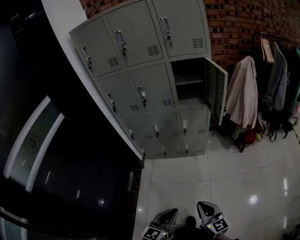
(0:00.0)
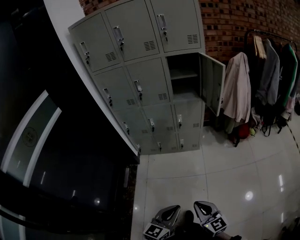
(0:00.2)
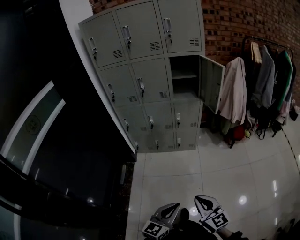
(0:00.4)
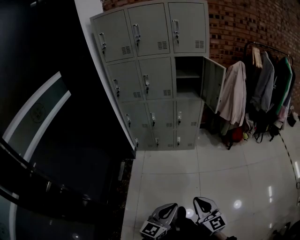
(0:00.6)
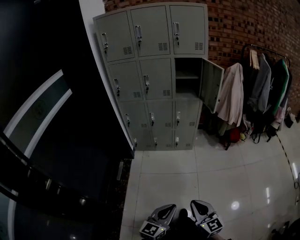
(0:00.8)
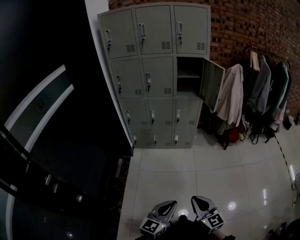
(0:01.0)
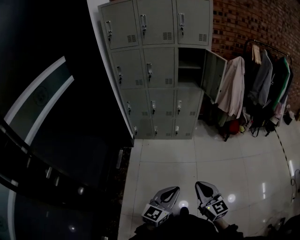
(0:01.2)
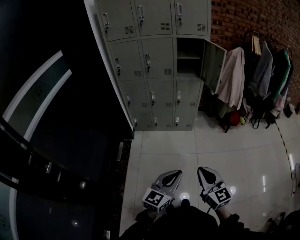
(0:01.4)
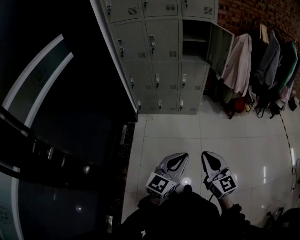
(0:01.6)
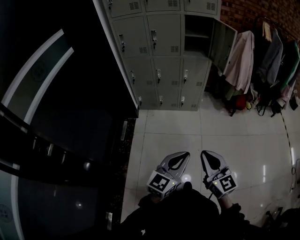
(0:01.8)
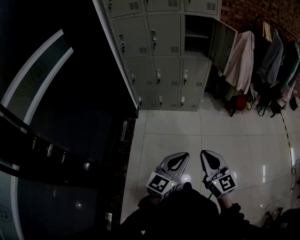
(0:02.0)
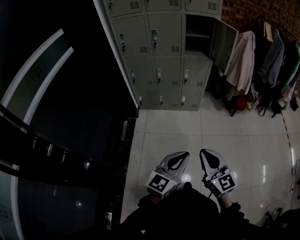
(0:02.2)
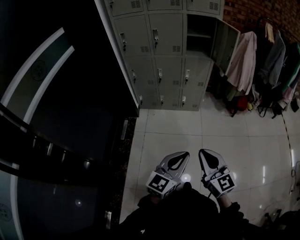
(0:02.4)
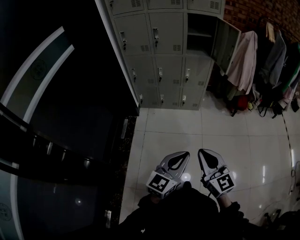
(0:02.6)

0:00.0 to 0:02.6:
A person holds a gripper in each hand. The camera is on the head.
0:00.0 to 0:01.2: The grippers both shift backward by about 15 cm.
0:01.2 to 0:02.6: The right gripper ends up some 5 cm from where it was.

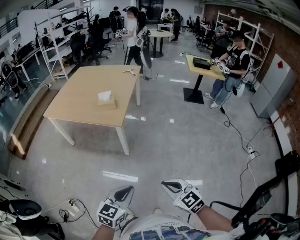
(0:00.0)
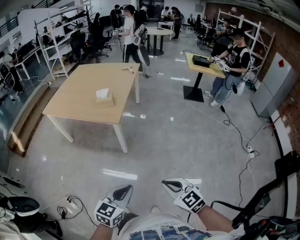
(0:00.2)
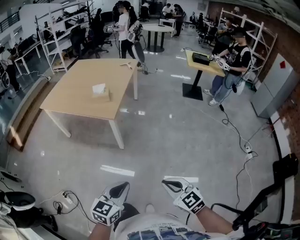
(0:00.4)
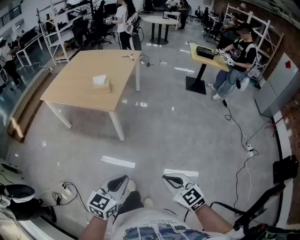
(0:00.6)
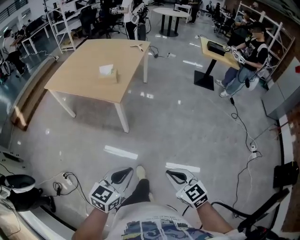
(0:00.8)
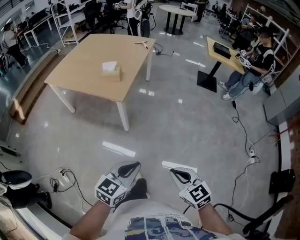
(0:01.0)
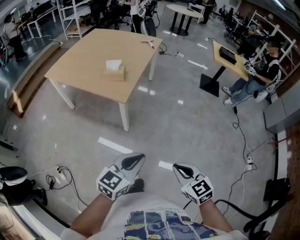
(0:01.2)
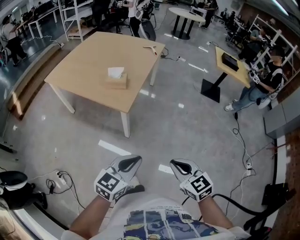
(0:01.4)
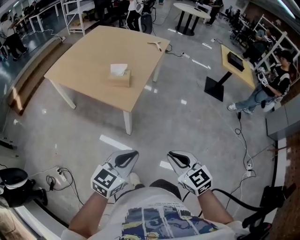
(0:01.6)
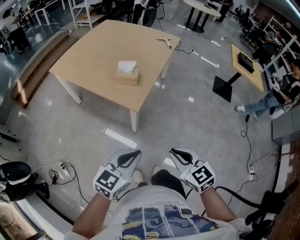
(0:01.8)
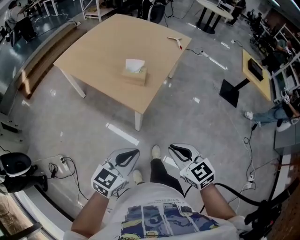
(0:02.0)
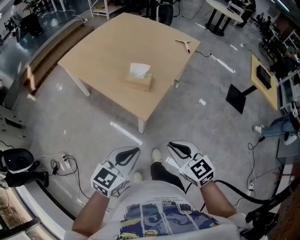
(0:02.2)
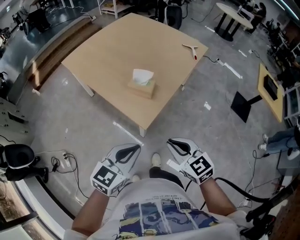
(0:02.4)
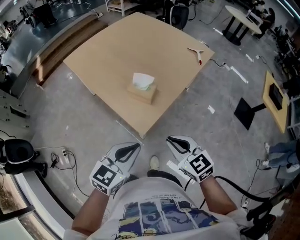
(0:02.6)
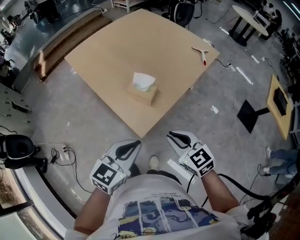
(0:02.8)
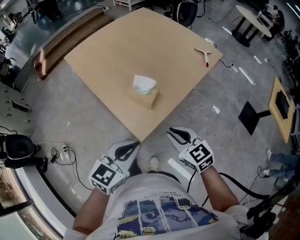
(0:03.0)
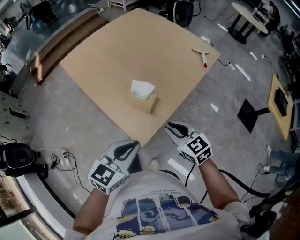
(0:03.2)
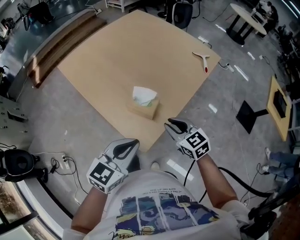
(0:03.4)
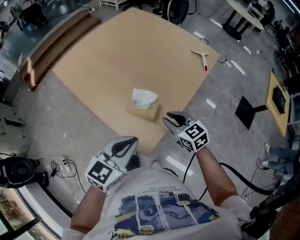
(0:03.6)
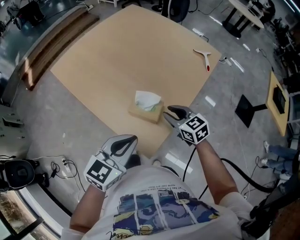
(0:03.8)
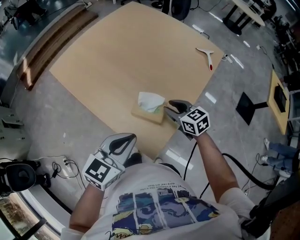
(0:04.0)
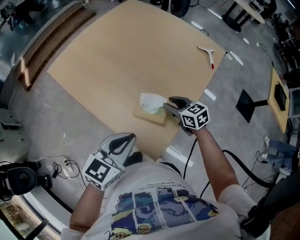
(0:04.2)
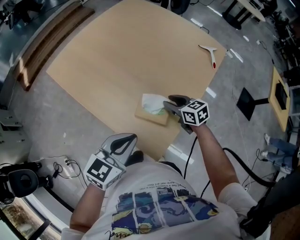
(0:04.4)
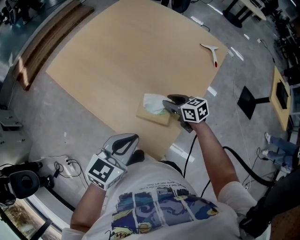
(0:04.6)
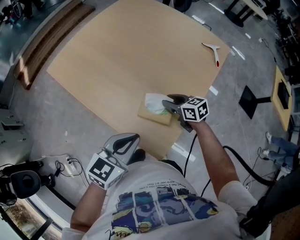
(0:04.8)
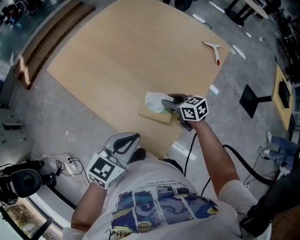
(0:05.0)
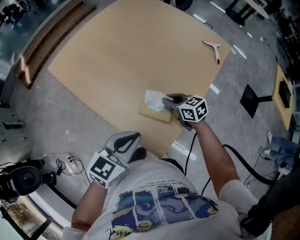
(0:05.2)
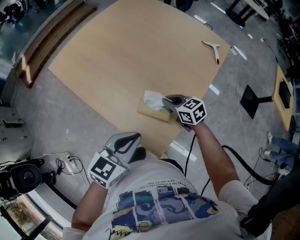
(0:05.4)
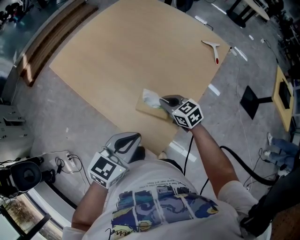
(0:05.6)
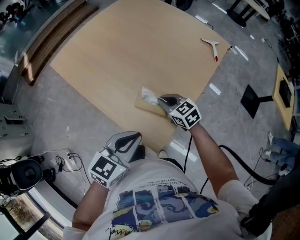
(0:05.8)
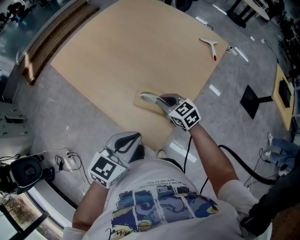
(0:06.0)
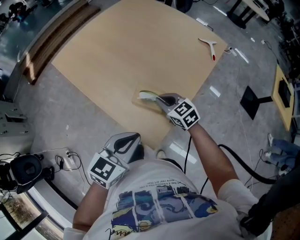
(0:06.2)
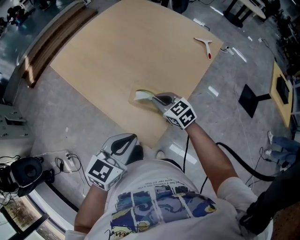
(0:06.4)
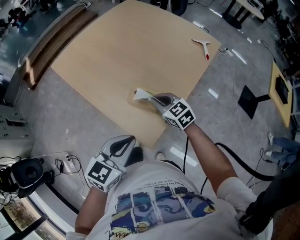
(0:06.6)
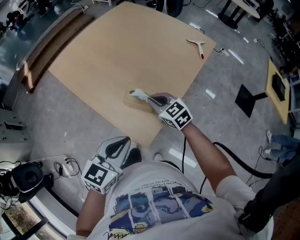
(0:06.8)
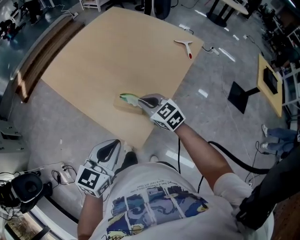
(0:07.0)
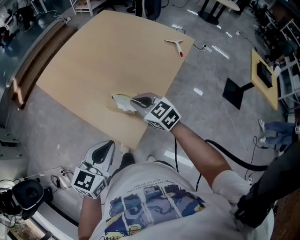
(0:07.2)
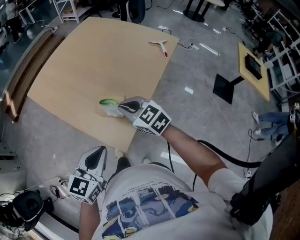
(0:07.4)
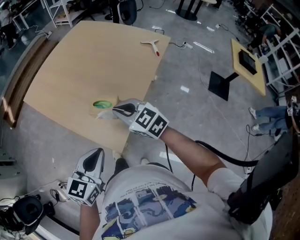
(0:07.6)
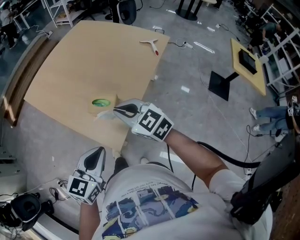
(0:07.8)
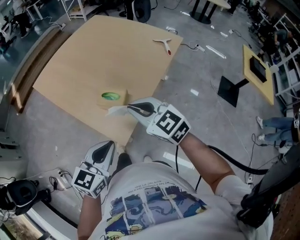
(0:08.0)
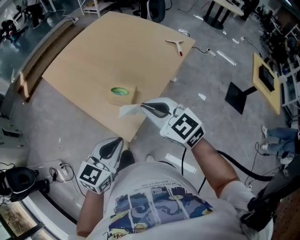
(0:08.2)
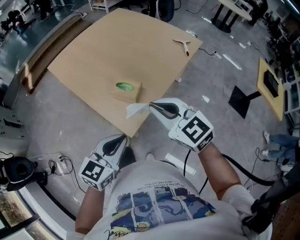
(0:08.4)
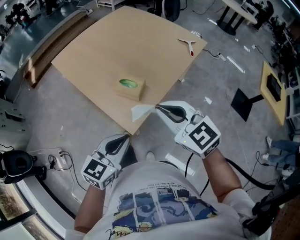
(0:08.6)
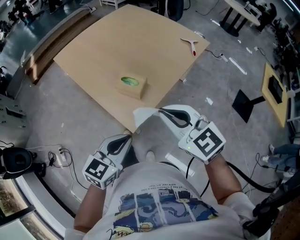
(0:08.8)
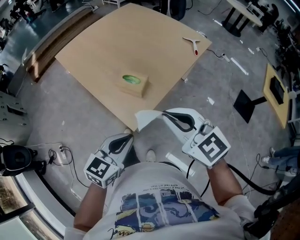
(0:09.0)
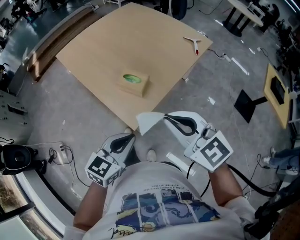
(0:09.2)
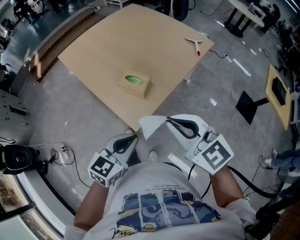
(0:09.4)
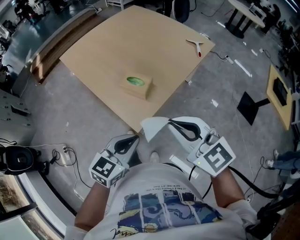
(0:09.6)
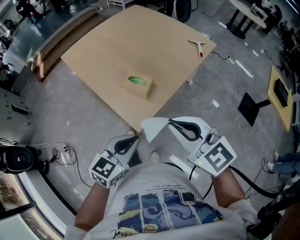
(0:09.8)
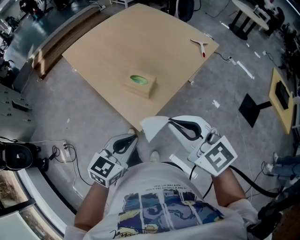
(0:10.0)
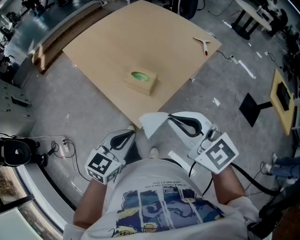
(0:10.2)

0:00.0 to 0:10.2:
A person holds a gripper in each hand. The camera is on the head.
0:00.0 to 0:01.4: Both grippers travel together forward, about 20 cm.
0:01.4 to 0:03.0: The left gripper changes place by about 35 cm, and changes its angle by roughly 30 degrees. The right gripper changes place by roughly 40 cm, and rotates about 30 degrees.
0:03.0 to 0:04.4: The left gripper moves forward and to the left, approximately 20 cm. The right gripper shifts approximately 30 cm forward and downward, turns by roughly 20 degrees, and opens.
0:04.4 to 0:05.8: The right gripper changes place by roughly 5 cm, and closes its fingers.
0:05.8 to 0:07.2: The right gripper is displaced upward and backward by roughly 10 cm, while the left gripper travels backward by roughly 5 cm.
0:07.2 to 0:08.8: The left gripper travels backward and to the right by approximately 15 cm. The right gripper travels backward, upward and to the right by about 25 cm.
0:08.8 to 0:10.2: The grippers make only small movements.

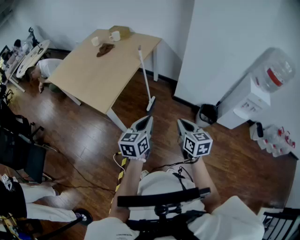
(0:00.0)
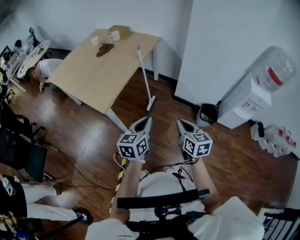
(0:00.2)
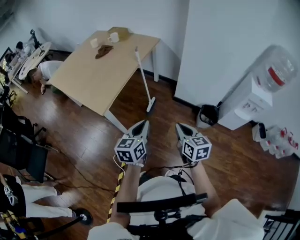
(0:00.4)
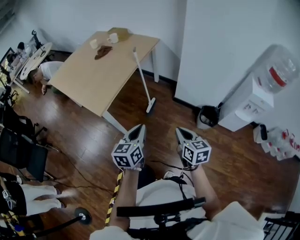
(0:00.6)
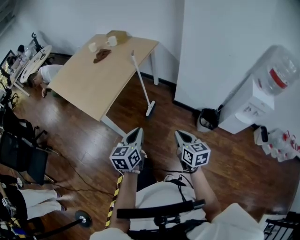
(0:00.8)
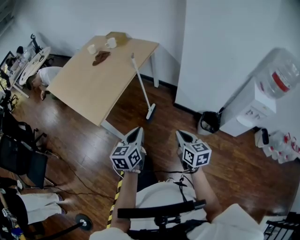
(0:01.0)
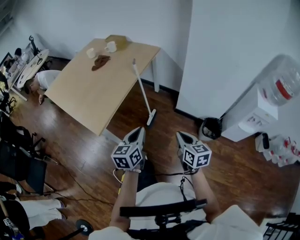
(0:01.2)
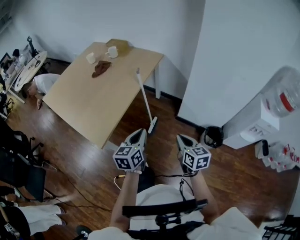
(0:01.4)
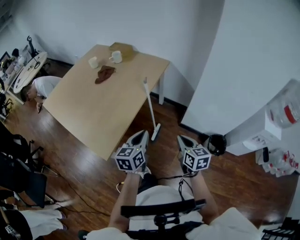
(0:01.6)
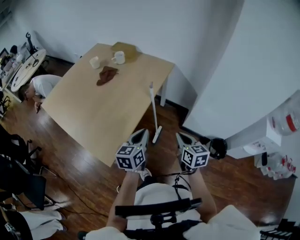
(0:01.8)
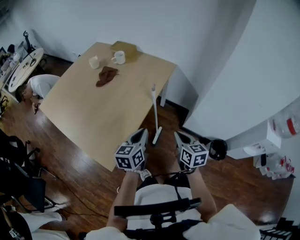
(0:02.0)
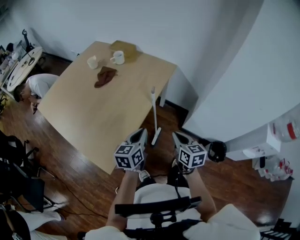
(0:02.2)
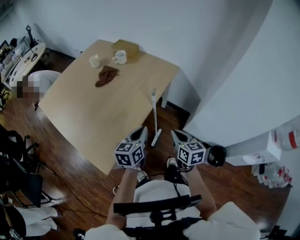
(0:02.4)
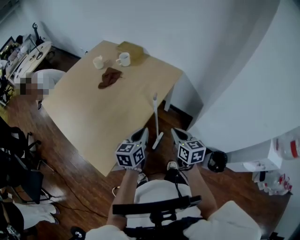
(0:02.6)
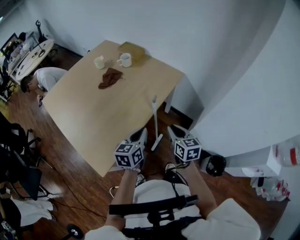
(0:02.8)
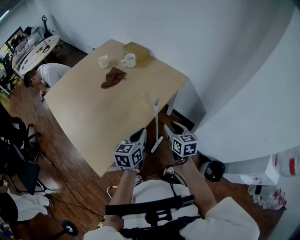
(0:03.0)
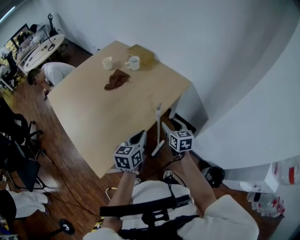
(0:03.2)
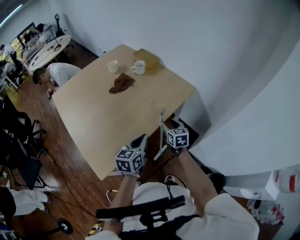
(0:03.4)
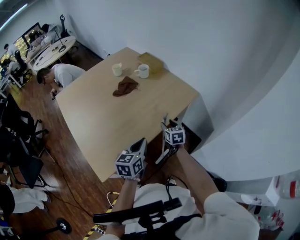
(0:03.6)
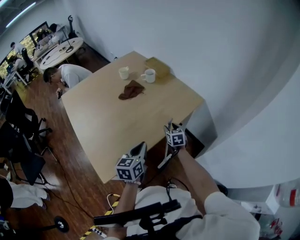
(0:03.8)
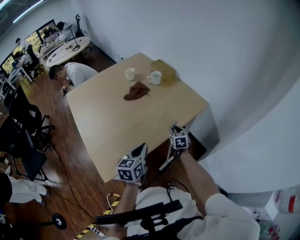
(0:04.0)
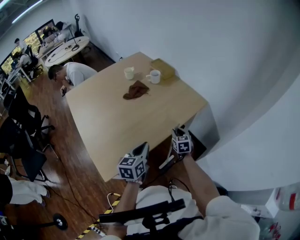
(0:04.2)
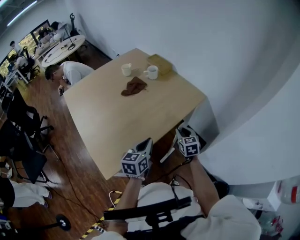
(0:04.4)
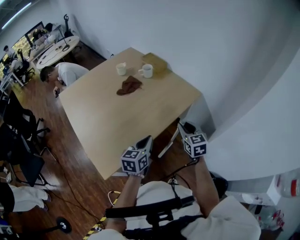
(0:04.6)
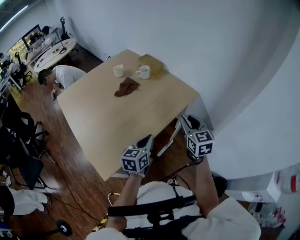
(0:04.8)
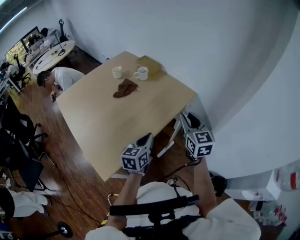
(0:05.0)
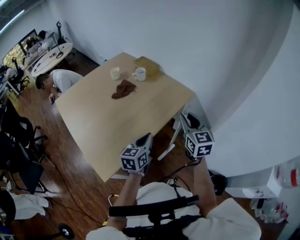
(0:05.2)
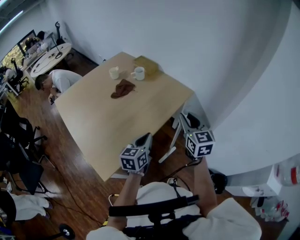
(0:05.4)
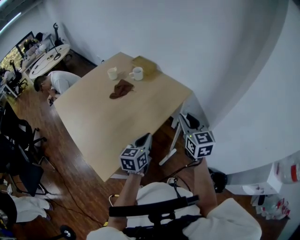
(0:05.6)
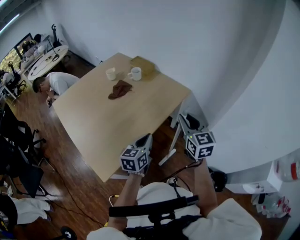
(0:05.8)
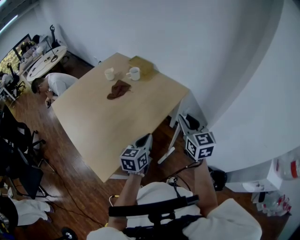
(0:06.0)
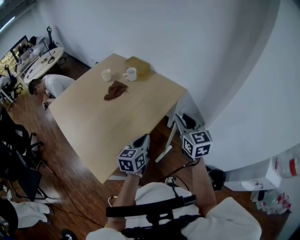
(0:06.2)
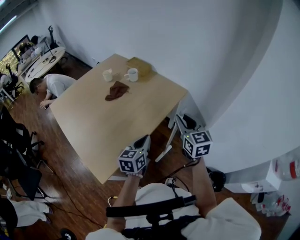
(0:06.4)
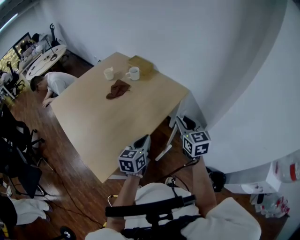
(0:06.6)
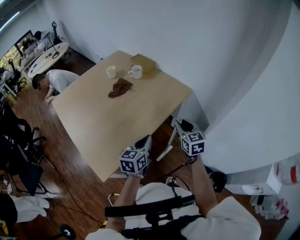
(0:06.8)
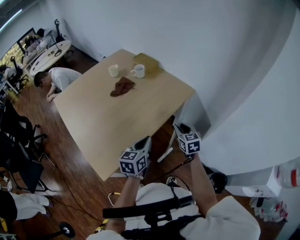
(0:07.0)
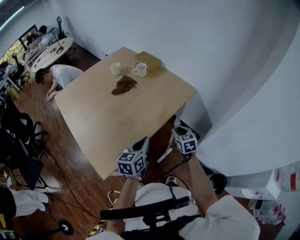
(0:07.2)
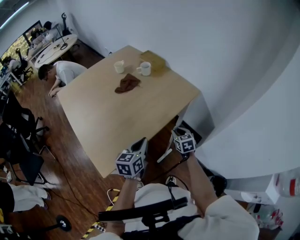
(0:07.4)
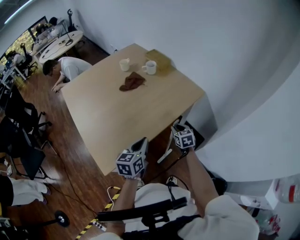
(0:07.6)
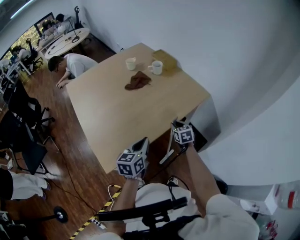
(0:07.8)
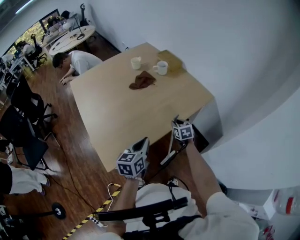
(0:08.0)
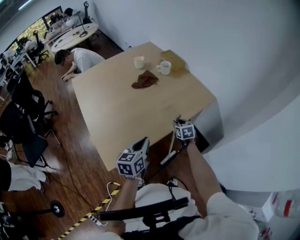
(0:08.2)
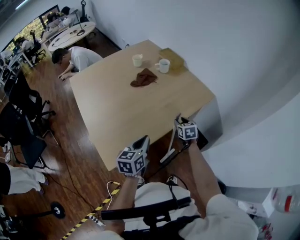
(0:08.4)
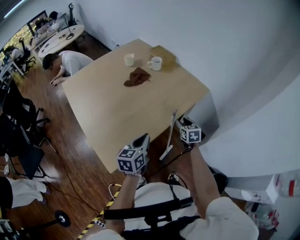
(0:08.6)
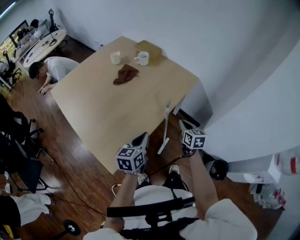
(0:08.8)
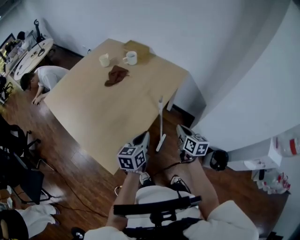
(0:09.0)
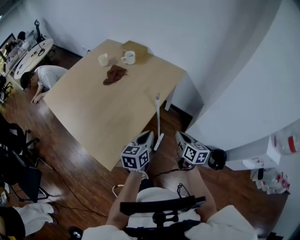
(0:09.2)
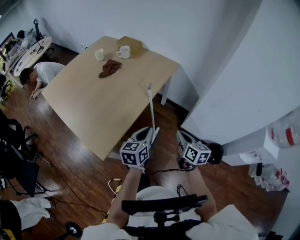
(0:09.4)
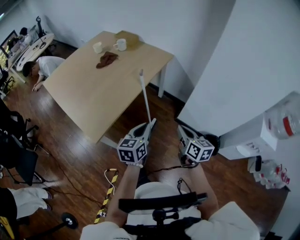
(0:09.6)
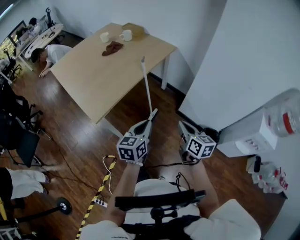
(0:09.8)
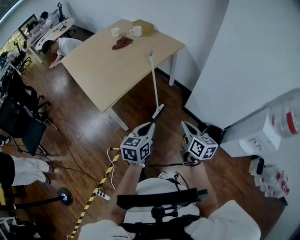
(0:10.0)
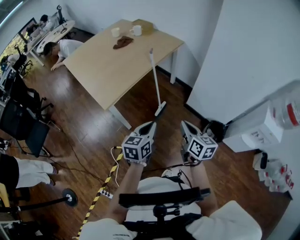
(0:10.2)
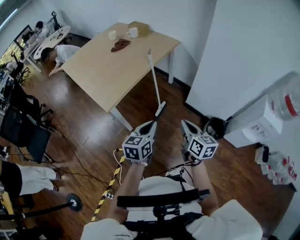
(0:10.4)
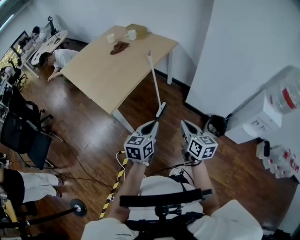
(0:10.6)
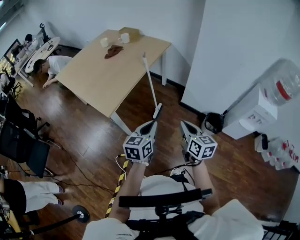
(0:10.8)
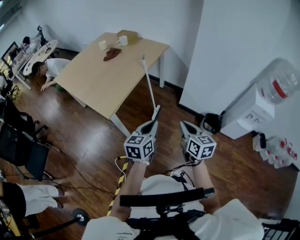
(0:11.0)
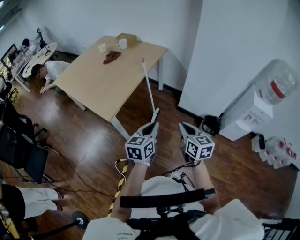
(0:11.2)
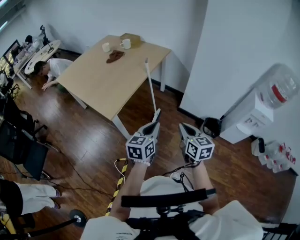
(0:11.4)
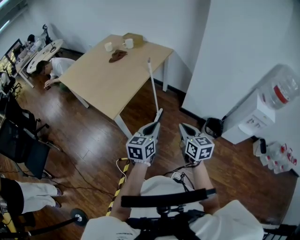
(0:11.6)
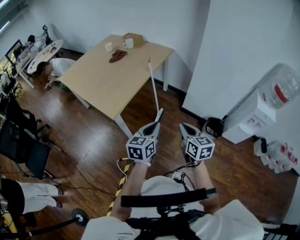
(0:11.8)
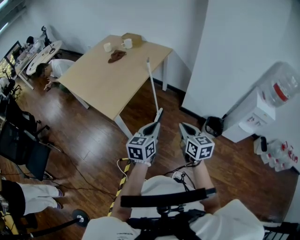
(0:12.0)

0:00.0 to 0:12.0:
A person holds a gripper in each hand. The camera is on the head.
0:00.0 to 0:01.6: The two grippers go some 25 cm forward.
0:01.6 to 0:03.0: The grippers both shift forward by approximately 25 cm. The right gripper opens up.
0:03.0 to 0:04.4: The right gripper shifts some 10 cm forward.
0:04.4 to 0:06.0: The left gripper shifts about 5 cm to the right. The right gripper heads upward, covering about 20 cm, and turns by roughly 20 degrees.
0:06.0 to 0:07.6: The left gripper moves to the left, about 5 cm. Meanwhile the right gripper moves downward, about 25 cm, and rotates about 30 degrees.
0:07.6 to 0:09.0: The right gripper is displaced backward and upward by some 15 cm, changes its angle by some 40 degrees, and closes up.
0:09.0 to 0:10.4: The two grippers travel together, backward, roughly 40 cm.
0:10.4 to 0:12.0: The right gripper travels to the left and backward by some 10 cm. The left gripper shifts by some 5 cm.
